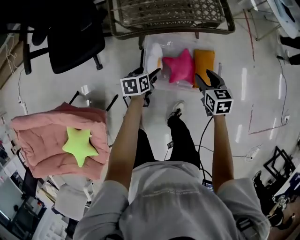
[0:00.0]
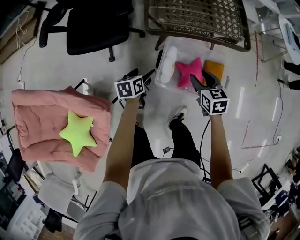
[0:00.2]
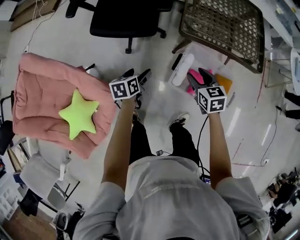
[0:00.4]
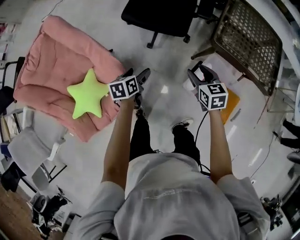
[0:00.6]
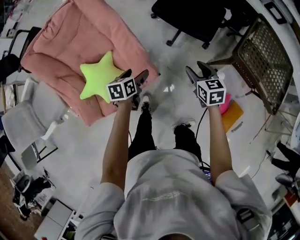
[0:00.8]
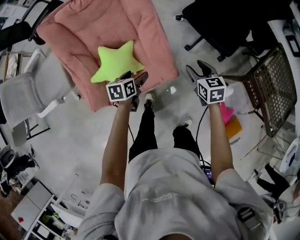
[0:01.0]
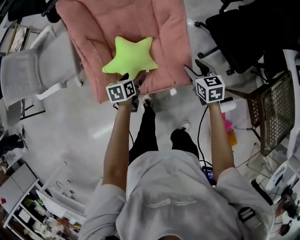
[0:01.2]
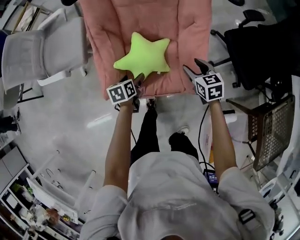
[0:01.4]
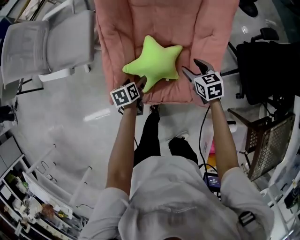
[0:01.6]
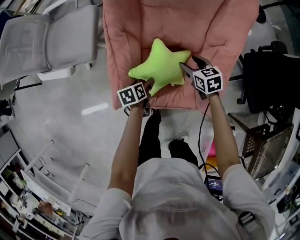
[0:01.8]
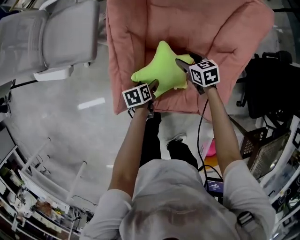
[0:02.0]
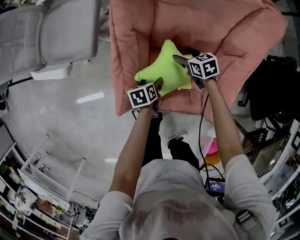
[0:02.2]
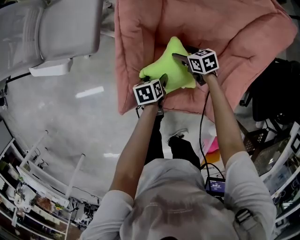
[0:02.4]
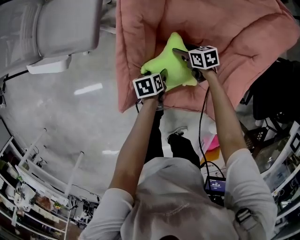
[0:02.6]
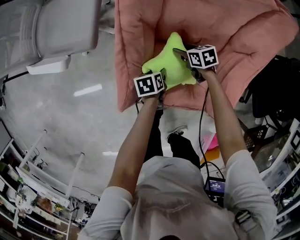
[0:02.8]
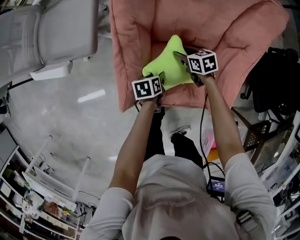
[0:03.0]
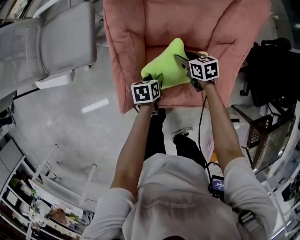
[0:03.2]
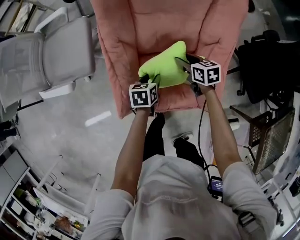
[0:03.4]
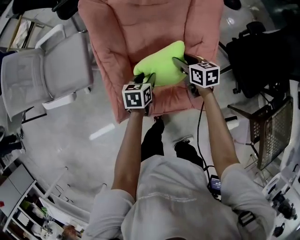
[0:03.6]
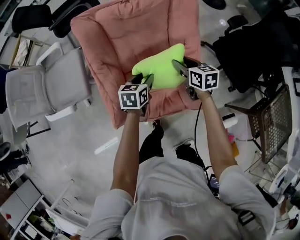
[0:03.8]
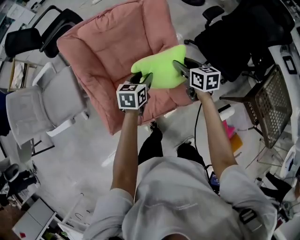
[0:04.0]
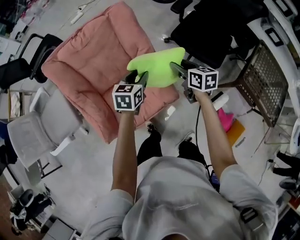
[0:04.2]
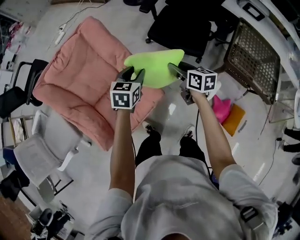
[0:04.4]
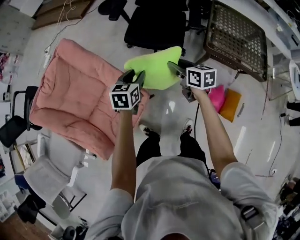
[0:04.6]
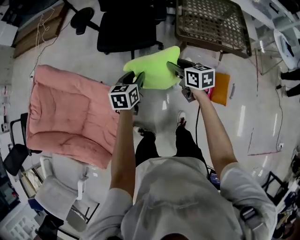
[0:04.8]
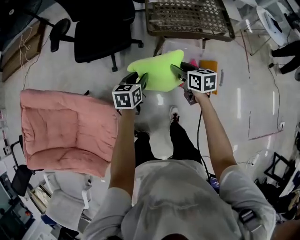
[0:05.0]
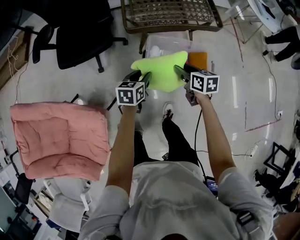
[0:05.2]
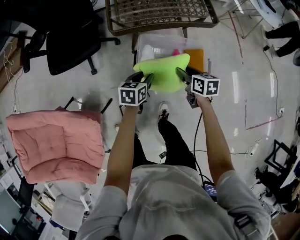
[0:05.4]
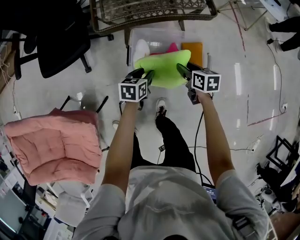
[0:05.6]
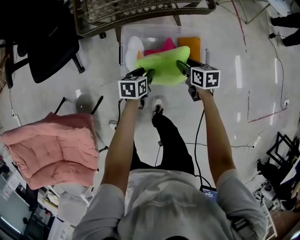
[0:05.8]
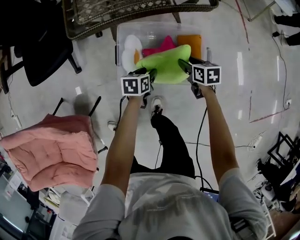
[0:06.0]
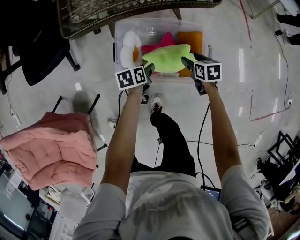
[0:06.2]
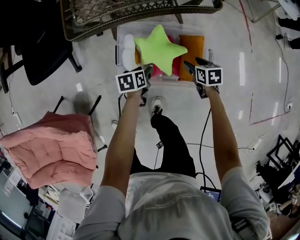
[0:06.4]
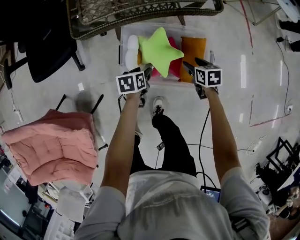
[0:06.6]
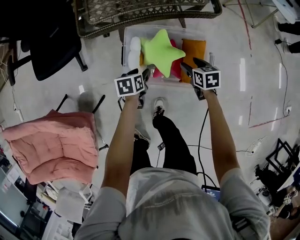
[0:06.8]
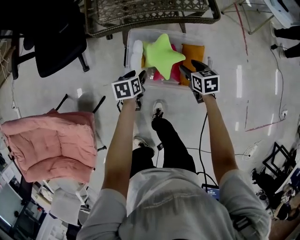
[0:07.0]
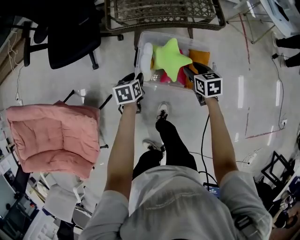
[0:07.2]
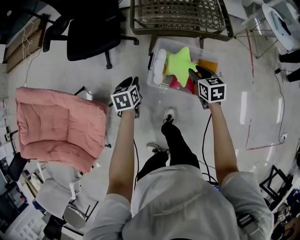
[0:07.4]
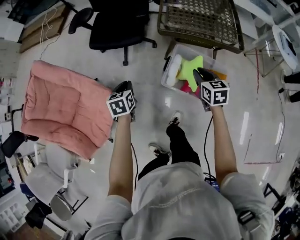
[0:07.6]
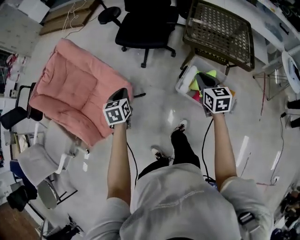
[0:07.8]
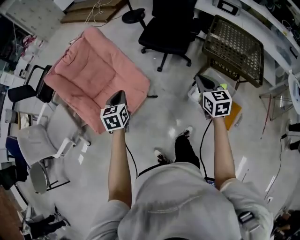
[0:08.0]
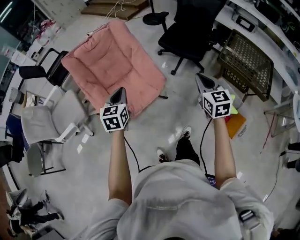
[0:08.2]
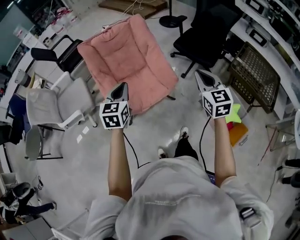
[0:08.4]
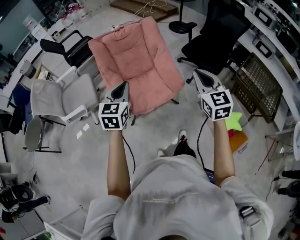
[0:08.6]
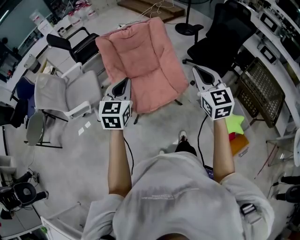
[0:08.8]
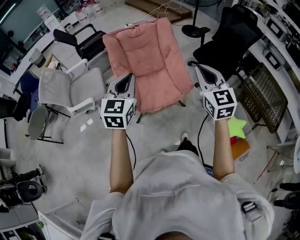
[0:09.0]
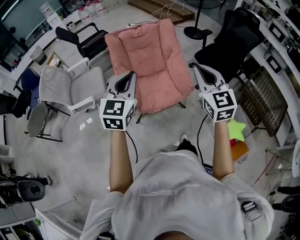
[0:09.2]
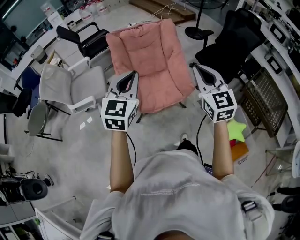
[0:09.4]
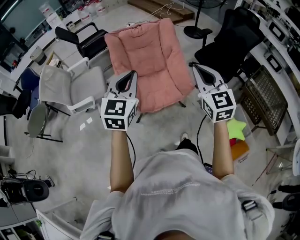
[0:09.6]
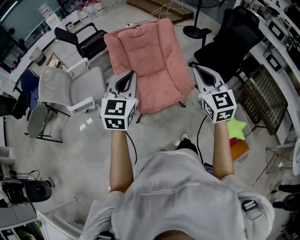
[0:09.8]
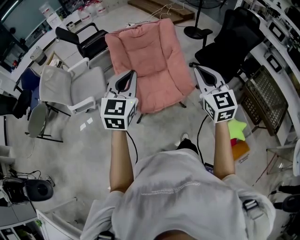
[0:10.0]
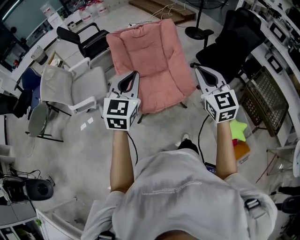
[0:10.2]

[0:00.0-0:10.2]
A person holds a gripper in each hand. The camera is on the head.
0:00.0 to 0:01.4: The pair of grippers is taken approximately 80 cm. The left gripper swivels roughly 90 degrees; the right gripper turns by some 90 degrees.
0:01.4 to 0:03.0: The left gripper shifts roughly 15 cm downward and forward, and closes. Meanwhile the right gripper moves downward, to the left and forward, some 30 cm, and turns by some 30 degrees.
0:03.0 to 0:04.4: The right gripper moves approximately 60 cm, and rotates approximately 70 degrees; the left gripper shifts by approximately 50 cm, and twists some 70 degrees clockwise, seen from behind.
0:04.4 to 0:05.8: Both grippers are carried some 70 cm. The right gripper rotates some 50 degrees. The left gripper turns by some 50 degrees.
0:05.8 to 0:07.2: The right gripper goes approximately 10 cm upward. The left gripper moves to the left and upward, approximately 15 cm, and turns by some 20 degrees.
0:07.2 to 0:08.8: Both grippers are carried about 70 cm. The right gripper points its fingers some 40 degrees further upward, and closes its fingers. Meanwhile the left gripper tips its fingers upward by some 40 degrees.
0:08.8 to 0:10.2: The left gripper is displaced upward by about 5 cm.

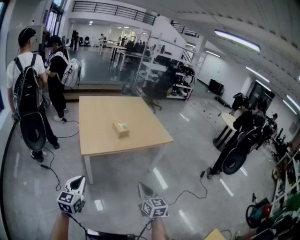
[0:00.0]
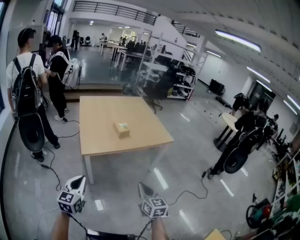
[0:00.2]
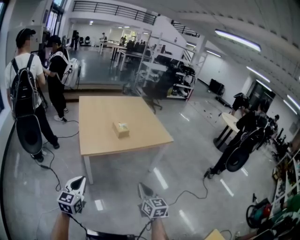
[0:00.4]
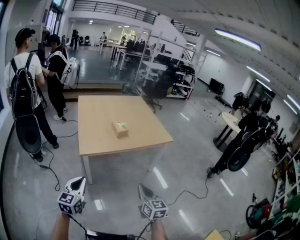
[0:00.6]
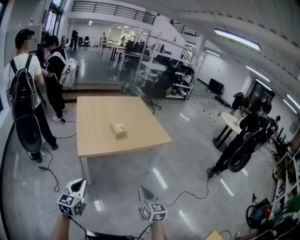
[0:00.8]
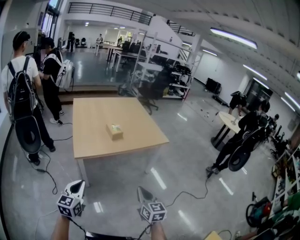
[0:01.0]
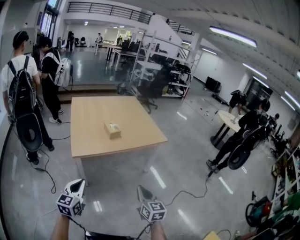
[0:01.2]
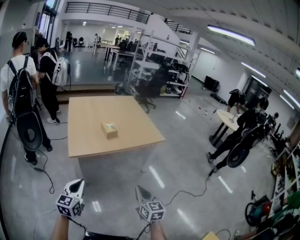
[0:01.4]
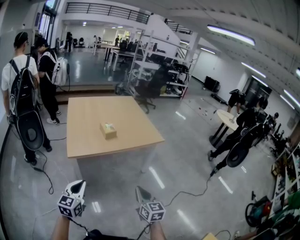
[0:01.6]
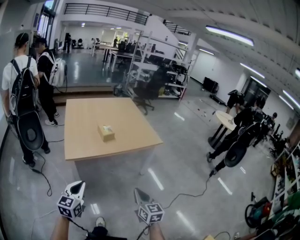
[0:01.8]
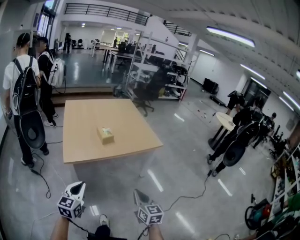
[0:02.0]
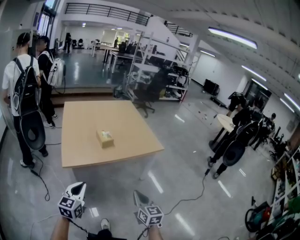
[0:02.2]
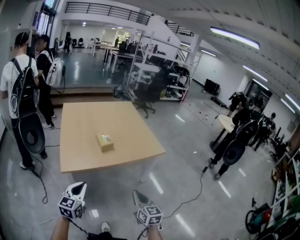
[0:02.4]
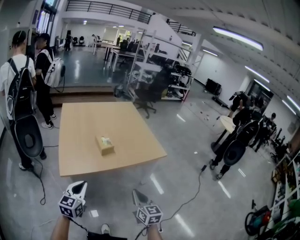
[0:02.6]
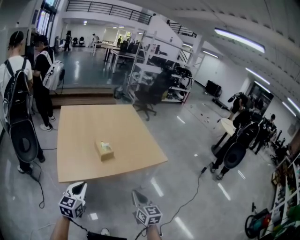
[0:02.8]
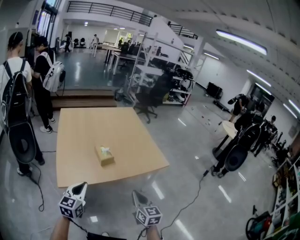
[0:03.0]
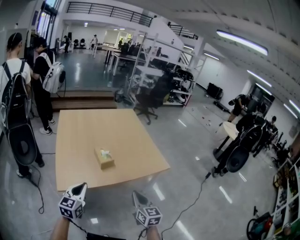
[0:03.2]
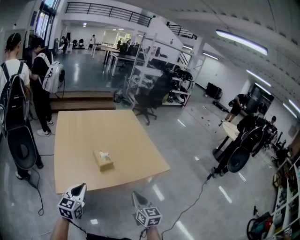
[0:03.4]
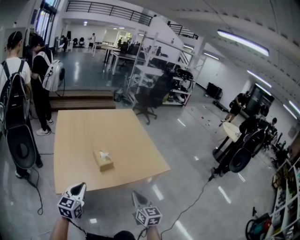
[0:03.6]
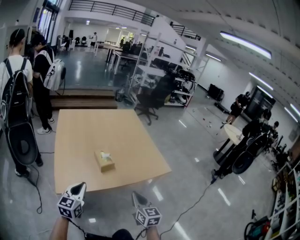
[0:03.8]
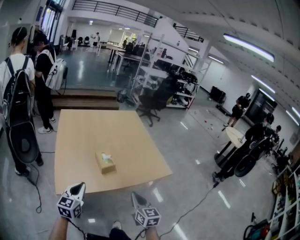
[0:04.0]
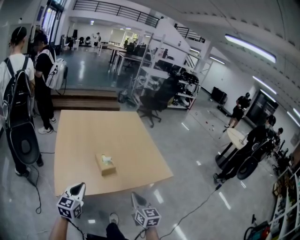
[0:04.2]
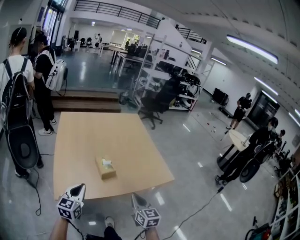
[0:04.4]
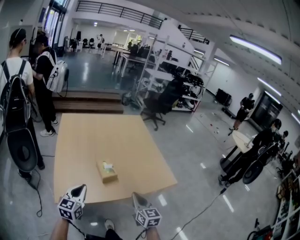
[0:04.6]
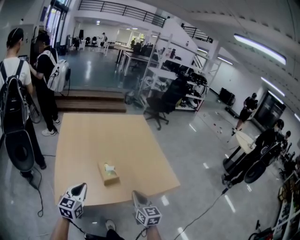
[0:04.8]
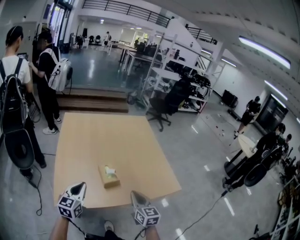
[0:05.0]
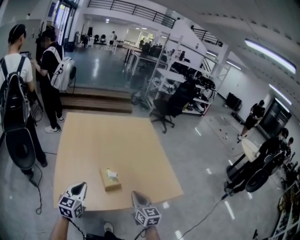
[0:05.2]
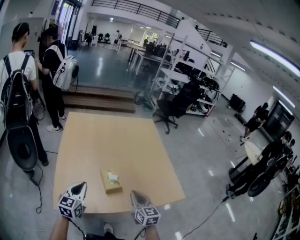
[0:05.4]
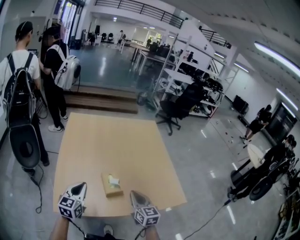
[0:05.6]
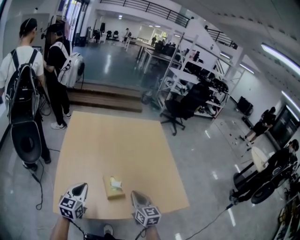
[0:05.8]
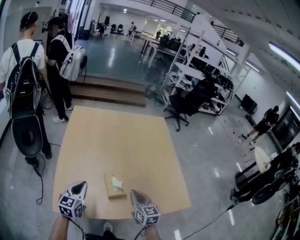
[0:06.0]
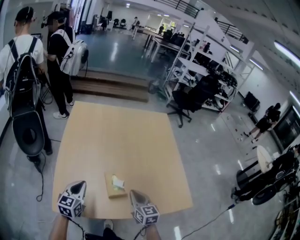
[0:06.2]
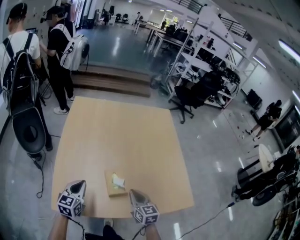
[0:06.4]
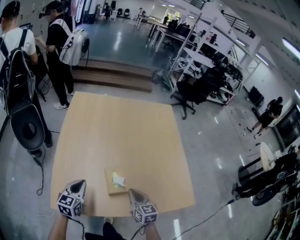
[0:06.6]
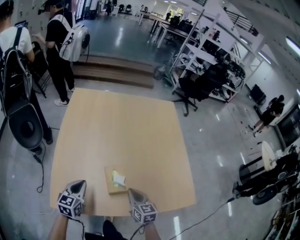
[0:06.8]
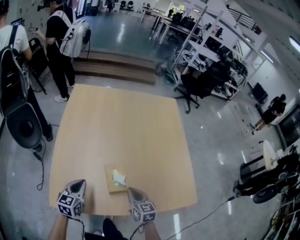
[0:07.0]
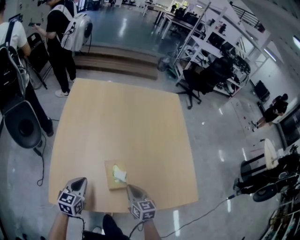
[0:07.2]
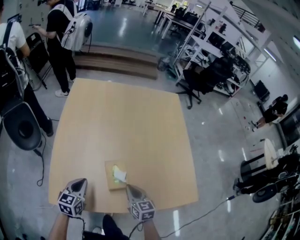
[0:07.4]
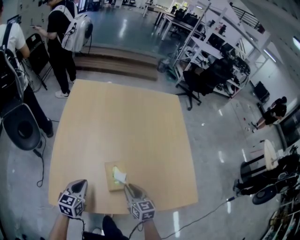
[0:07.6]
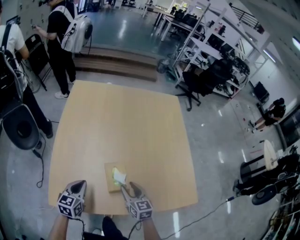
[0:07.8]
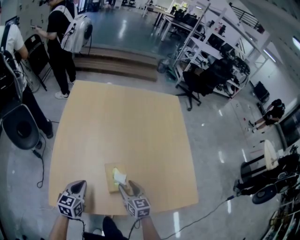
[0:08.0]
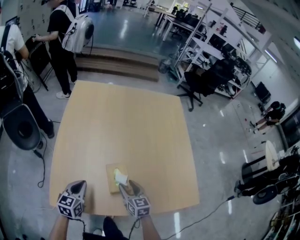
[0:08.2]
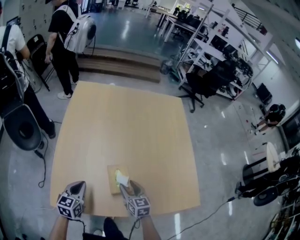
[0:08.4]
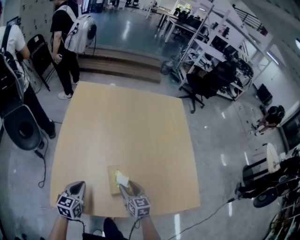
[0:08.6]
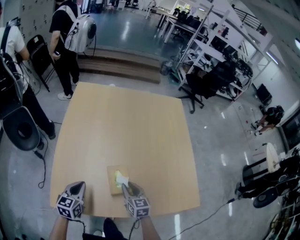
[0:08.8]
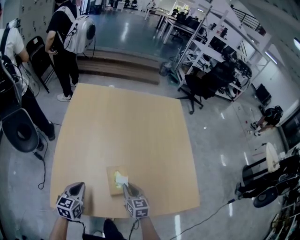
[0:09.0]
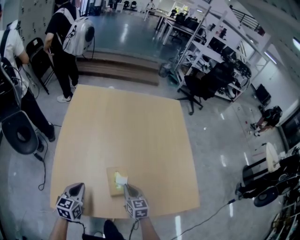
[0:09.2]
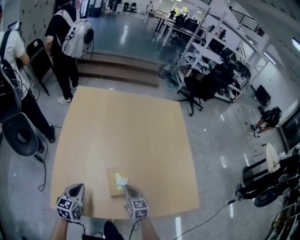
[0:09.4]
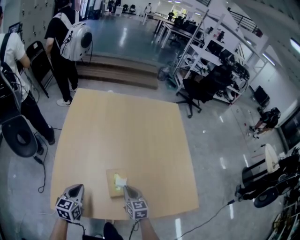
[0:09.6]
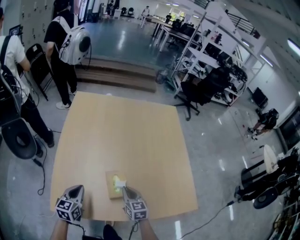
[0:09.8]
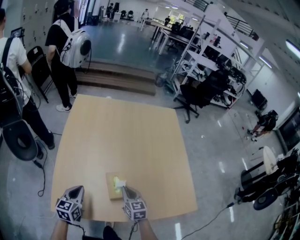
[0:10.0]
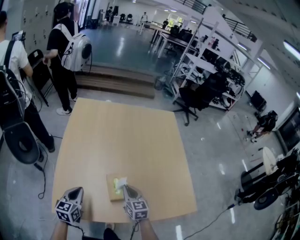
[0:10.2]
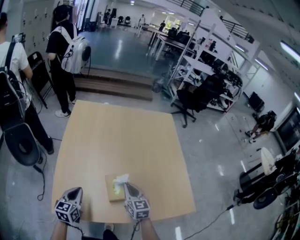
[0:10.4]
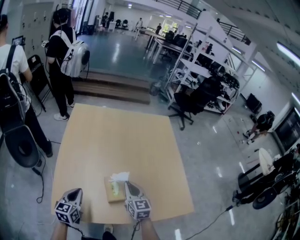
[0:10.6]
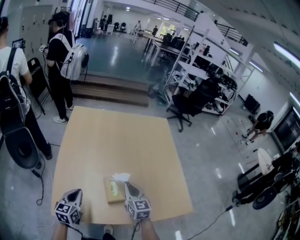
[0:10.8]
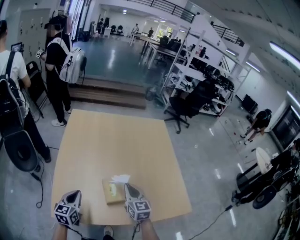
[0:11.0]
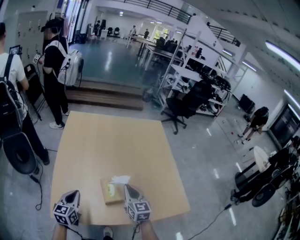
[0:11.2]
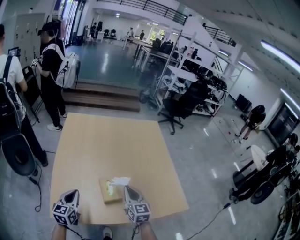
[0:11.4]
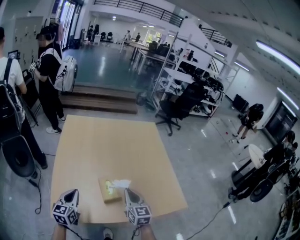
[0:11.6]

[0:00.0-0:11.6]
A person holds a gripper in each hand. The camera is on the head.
0:00.0 to 0:01.4: The grippers both shift to the right by roughly 10 cm.
0:01.4 to 0:02.8: The grippers both shift forward by some 25 cm.
0:02.8 to 0:04.4: The two grippers go some 15 cm forward.
0:04.4 to 0:05.8: Both grippers move forward, approximately 20 cm.
0:05.8 to 0:07.2: Both grippers move downward, roughly 10 cm.
0:07.2 to 0:08.8: The right gripper opens its fingers.
0:08.8 to 0:10.2: The right gripper heads upward, covering approximately 5 cm, and closes up.
0:10.2 to 0:11.6: The left gripper is displaced upward by about 5 cm. Meanwhile the right gripper heads upward and backward, covering some 10 cm.

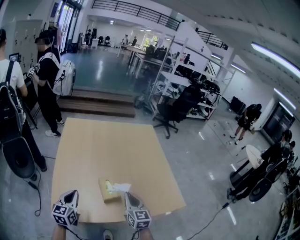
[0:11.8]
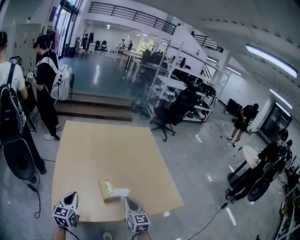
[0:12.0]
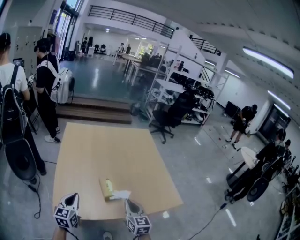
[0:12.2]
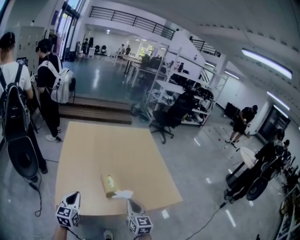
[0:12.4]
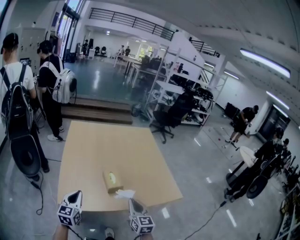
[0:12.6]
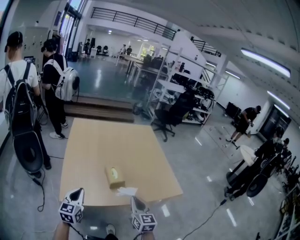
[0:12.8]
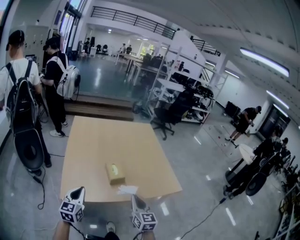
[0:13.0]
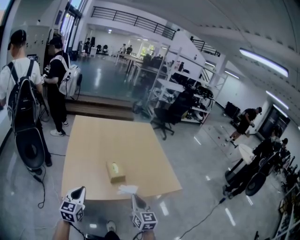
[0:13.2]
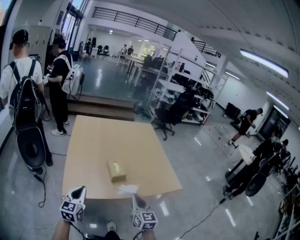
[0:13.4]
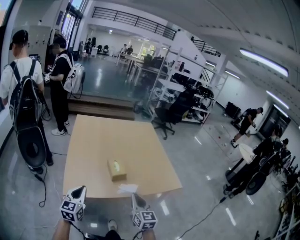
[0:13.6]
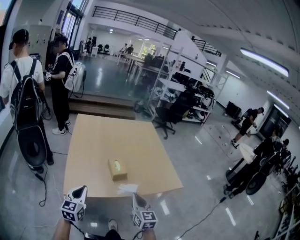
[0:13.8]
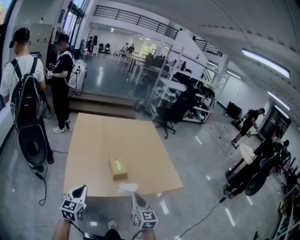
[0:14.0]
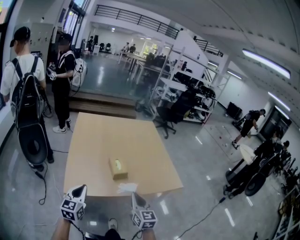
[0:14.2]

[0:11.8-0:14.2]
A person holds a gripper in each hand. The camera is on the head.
0:11.8 to 0:13.0: Both grippers travel together backward, approximately 15 cm.
0:13.0 to 0:14.2: There are only small adjustments of the grippers.
